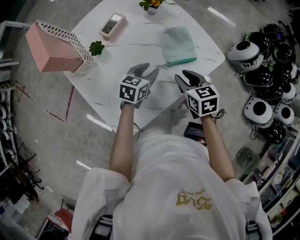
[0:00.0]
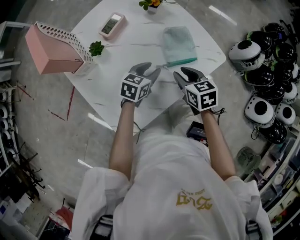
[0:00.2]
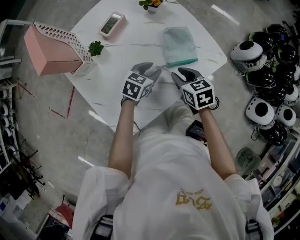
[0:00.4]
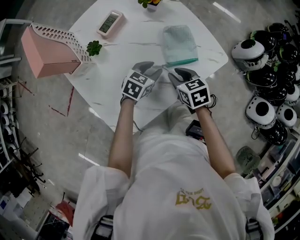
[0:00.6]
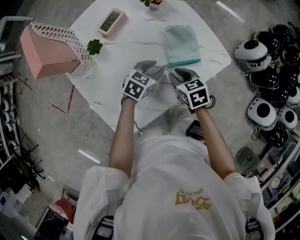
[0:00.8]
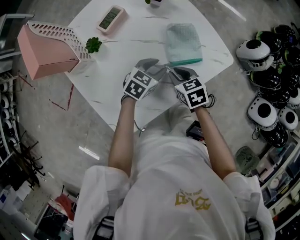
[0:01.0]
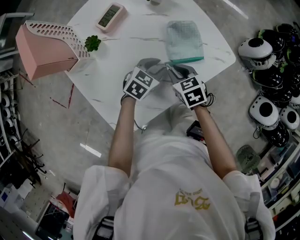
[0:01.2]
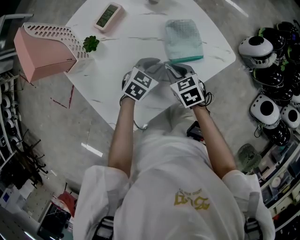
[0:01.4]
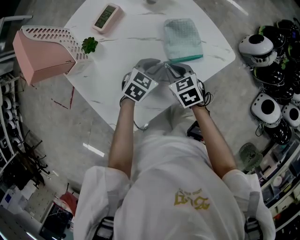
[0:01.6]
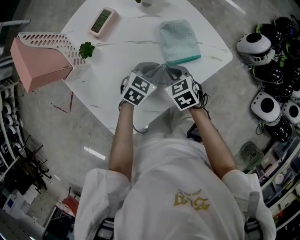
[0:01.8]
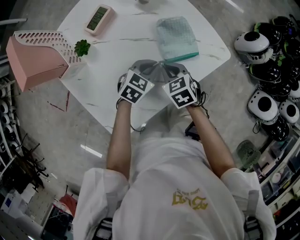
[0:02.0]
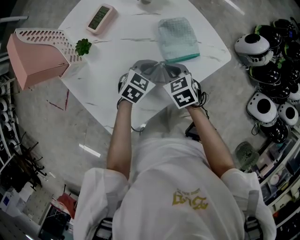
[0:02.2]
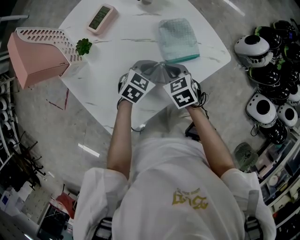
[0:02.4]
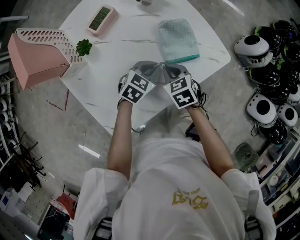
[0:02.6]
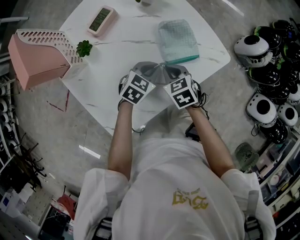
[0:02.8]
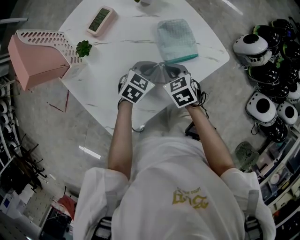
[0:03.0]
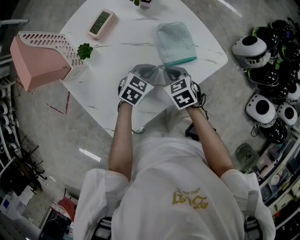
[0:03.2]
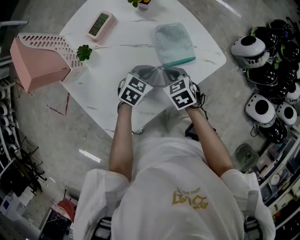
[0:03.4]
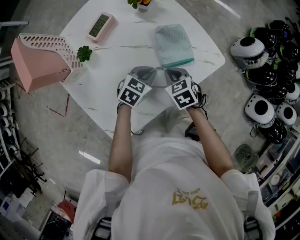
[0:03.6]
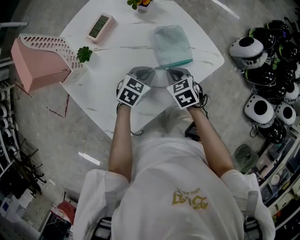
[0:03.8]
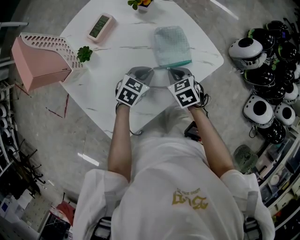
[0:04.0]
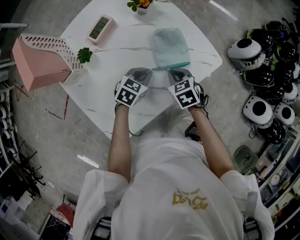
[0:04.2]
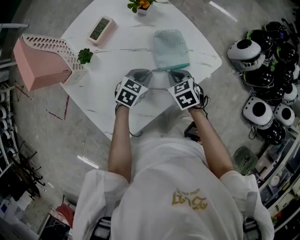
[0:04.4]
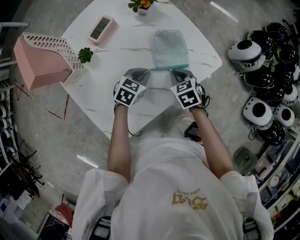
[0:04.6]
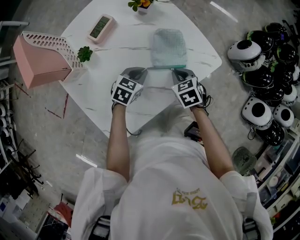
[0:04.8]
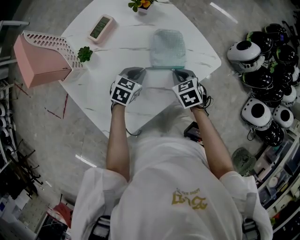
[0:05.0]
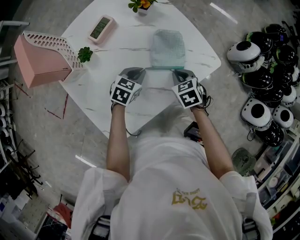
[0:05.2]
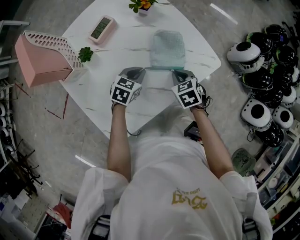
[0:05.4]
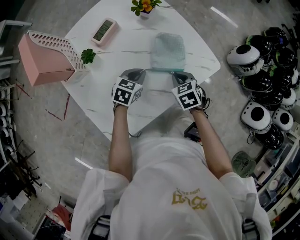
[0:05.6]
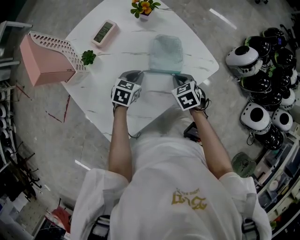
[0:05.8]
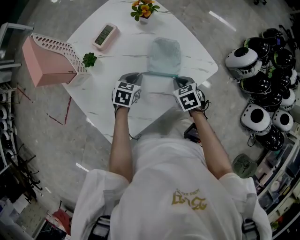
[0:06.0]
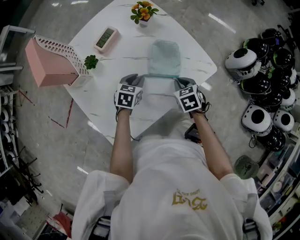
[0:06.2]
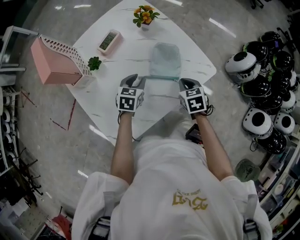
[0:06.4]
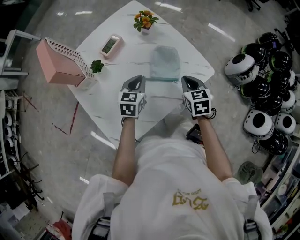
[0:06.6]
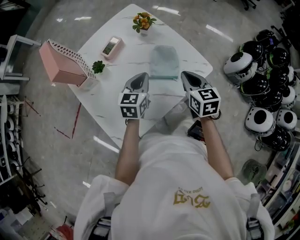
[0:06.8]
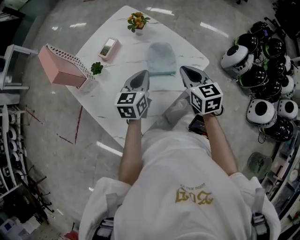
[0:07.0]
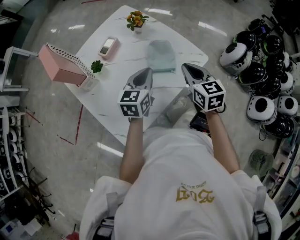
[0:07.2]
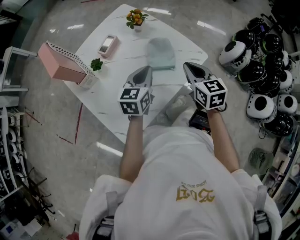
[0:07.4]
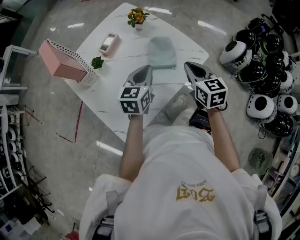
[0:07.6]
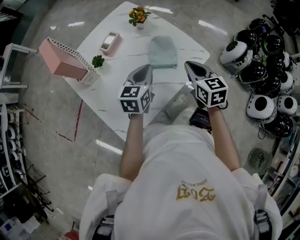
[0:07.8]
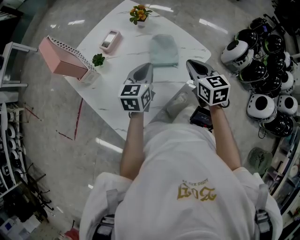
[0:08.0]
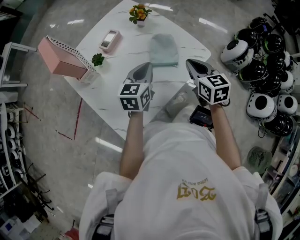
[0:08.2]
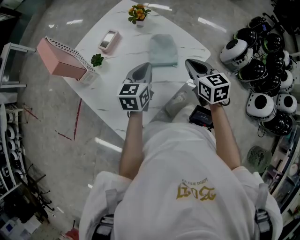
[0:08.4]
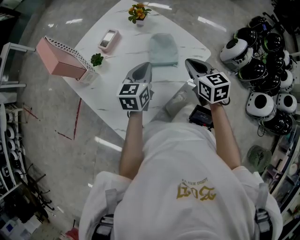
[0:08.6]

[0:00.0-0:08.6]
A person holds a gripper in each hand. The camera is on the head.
0:00.0 to 0:01.4: The left gripper ends up roughly 5 cm from where it was, and changes its angle by about 20 degrees, while the right gripper travels downward by approximately 10 cm.
0:01.4 to 0:04.4: The grippers move only a little.
0:04.4 to 0:05.8: There are only small adjustments of the grippers.
0:05.8 to 0:07.2: Both grippers move upward, approximately 20 cm. The right gripper tips its fingers upward by roughly 30 degrees. The left gripper changes its angle by some 30 degrees, and opens and closes again.
0:07.2 to 0:08.6: The grippers stay close to where they were, moving slightly.

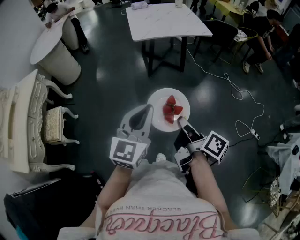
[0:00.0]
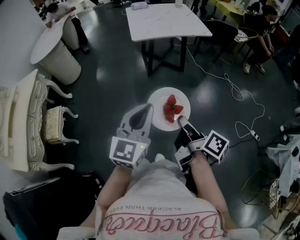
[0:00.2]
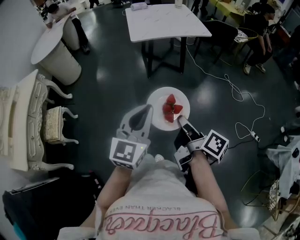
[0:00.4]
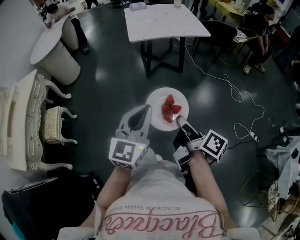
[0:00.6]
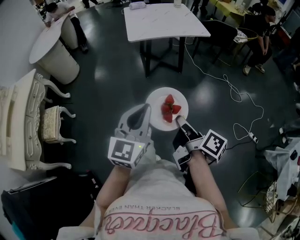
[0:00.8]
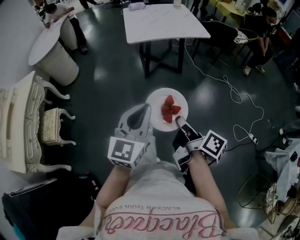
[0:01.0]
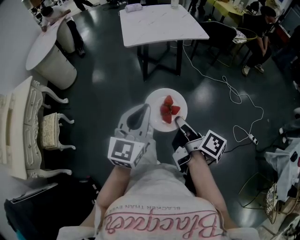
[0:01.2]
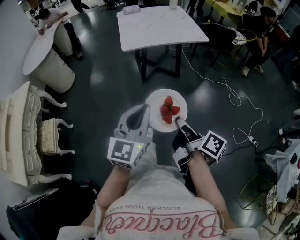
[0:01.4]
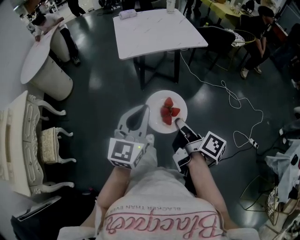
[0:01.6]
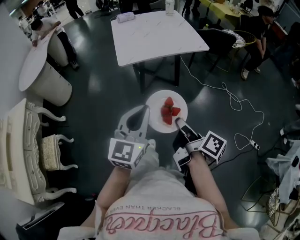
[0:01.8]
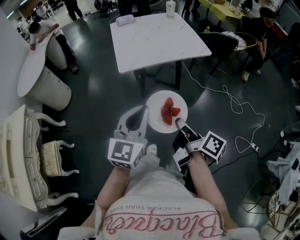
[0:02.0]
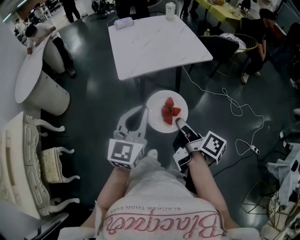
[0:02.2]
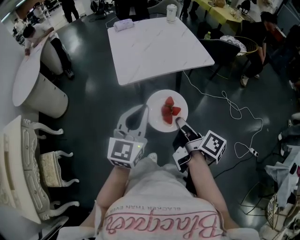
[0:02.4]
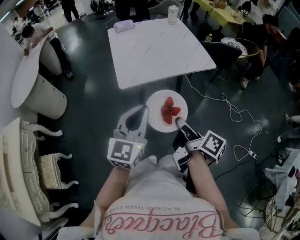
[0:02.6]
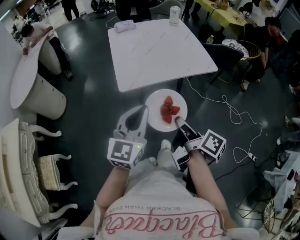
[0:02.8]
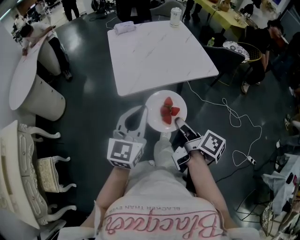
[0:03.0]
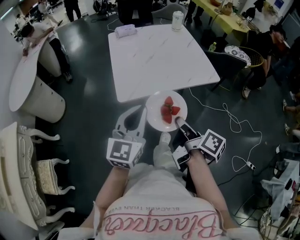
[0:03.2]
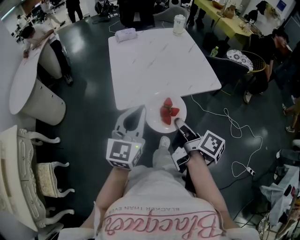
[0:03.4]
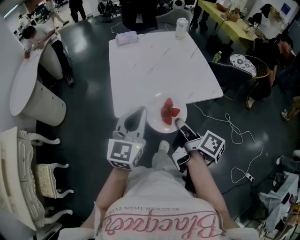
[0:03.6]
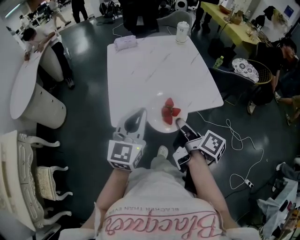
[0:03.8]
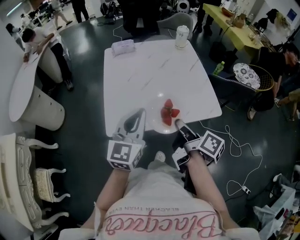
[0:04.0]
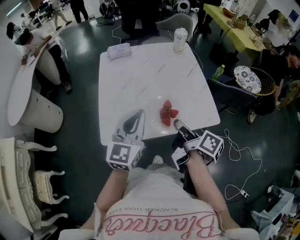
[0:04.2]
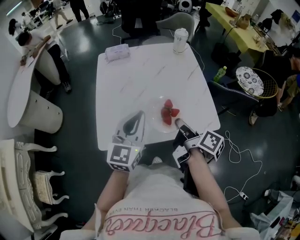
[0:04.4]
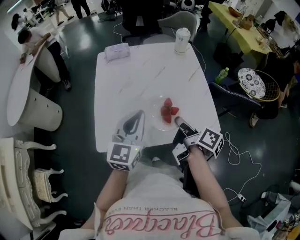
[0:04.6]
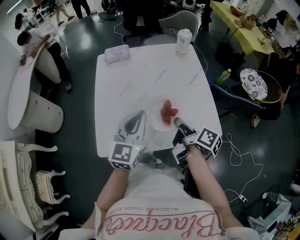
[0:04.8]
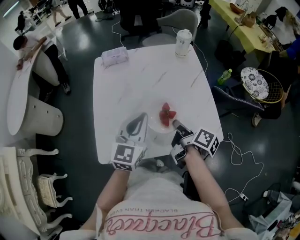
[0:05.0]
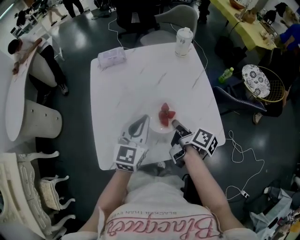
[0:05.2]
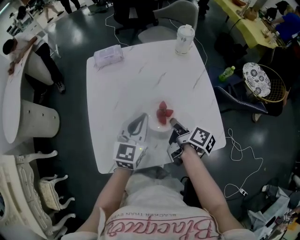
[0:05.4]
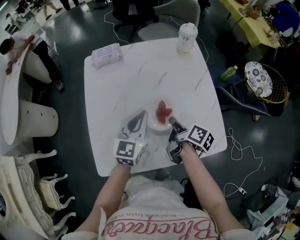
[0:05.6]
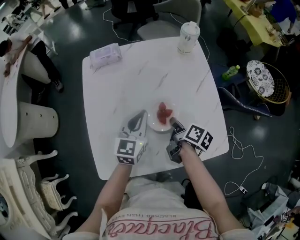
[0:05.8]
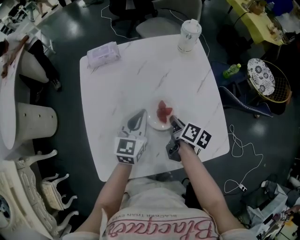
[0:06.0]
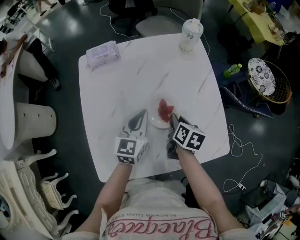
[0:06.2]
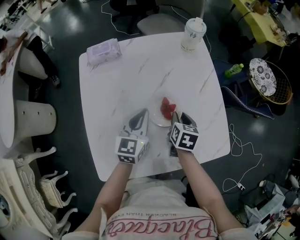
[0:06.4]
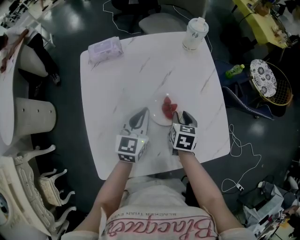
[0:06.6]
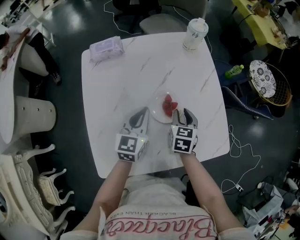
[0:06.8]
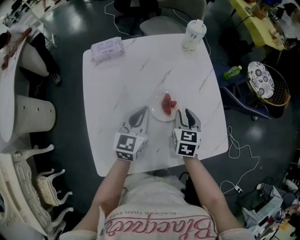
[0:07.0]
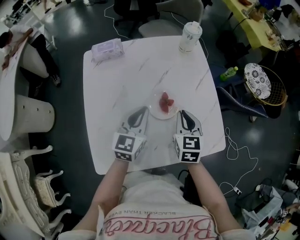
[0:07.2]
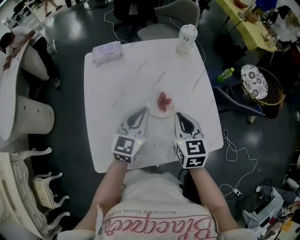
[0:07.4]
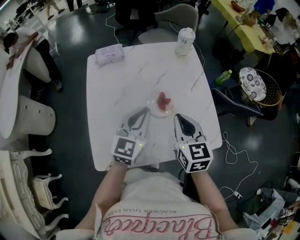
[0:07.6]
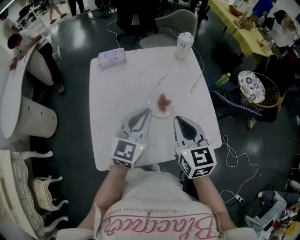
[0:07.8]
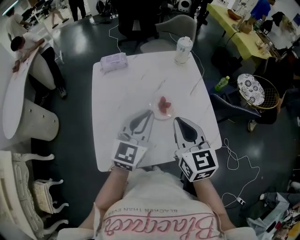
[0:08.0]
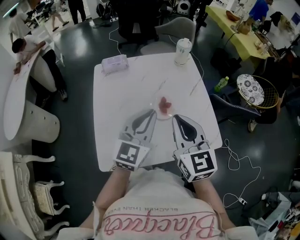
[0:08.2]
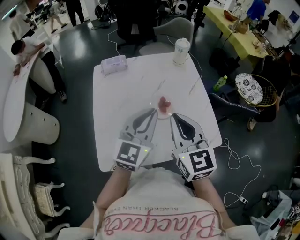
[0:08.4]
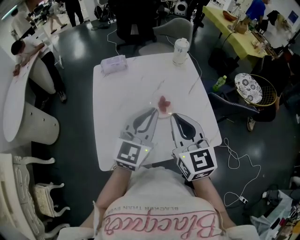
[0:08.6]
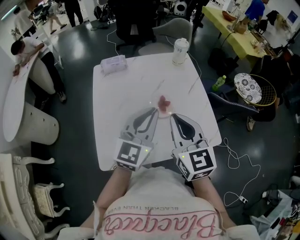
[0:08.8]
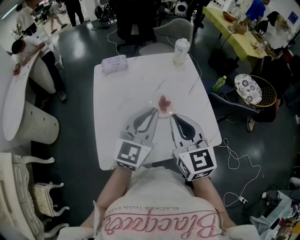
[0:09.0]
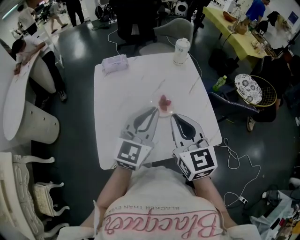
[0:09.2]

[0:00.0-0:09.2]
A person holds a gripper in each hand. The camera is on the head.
0:00.0 to 0:01.6: Both grippers move forward, some 15 cm.
0:01.6 to 0:03.0: Both grippers move forward, approximately 30 cm.
0:03.0 to 0:04.6: Both grippers travel together forward, about 40 cm.
0:04.6 to 0:06.2: The grippers both shift forward and downward by roughly 25 cm. The right gripper turns by some 40 degrees.
0:06.2 to 0:07.6: The right gripper travels upward and backward by about 20 cm, and swivels about 40 degrees; the left gripper shifts roughly 10 cm upward and backward.
0:07.6 to 0:09.2: Both grippers travel together upward and backward, some 10 cm.

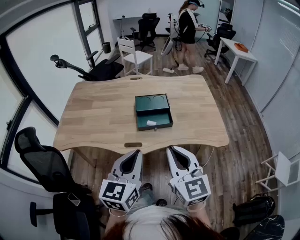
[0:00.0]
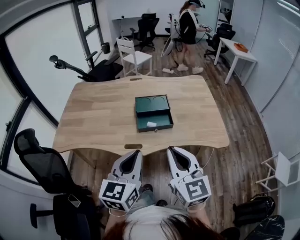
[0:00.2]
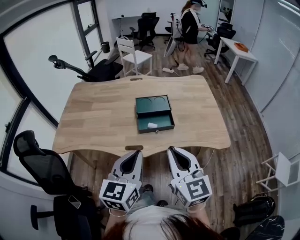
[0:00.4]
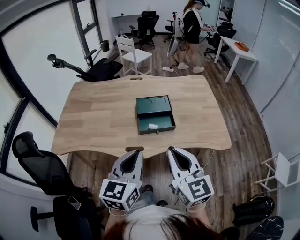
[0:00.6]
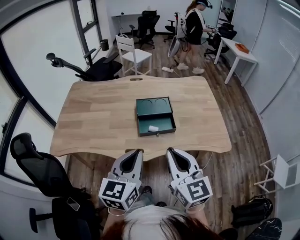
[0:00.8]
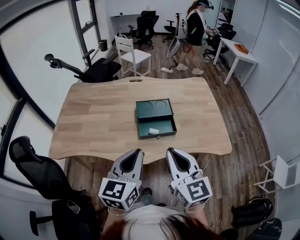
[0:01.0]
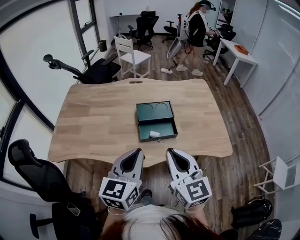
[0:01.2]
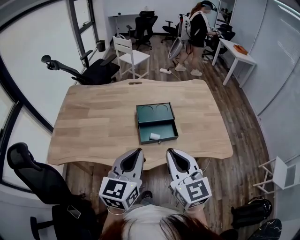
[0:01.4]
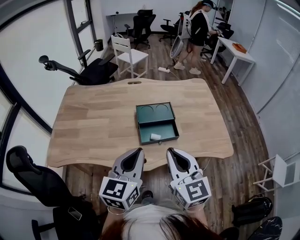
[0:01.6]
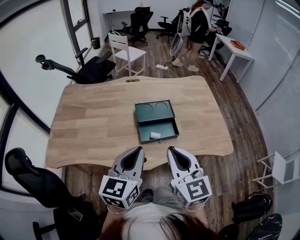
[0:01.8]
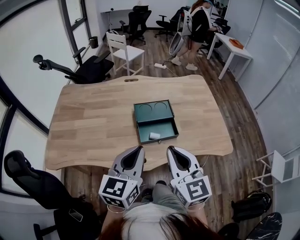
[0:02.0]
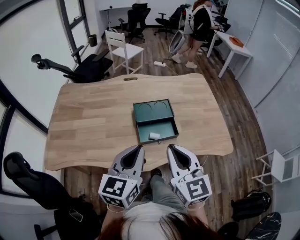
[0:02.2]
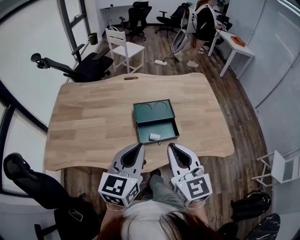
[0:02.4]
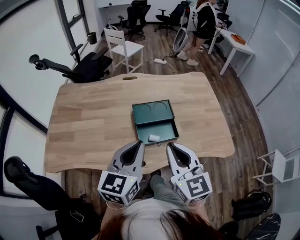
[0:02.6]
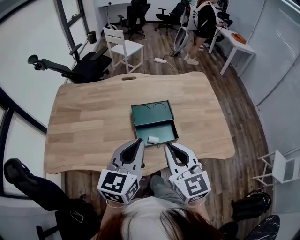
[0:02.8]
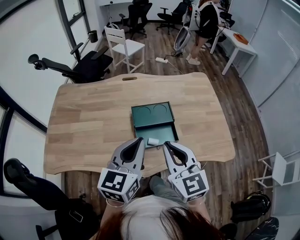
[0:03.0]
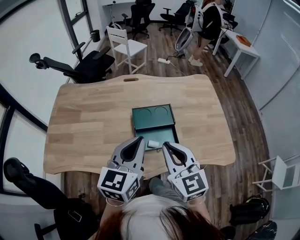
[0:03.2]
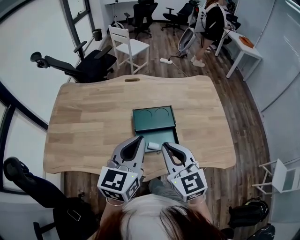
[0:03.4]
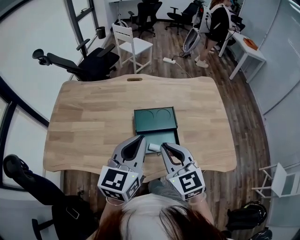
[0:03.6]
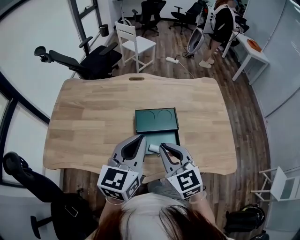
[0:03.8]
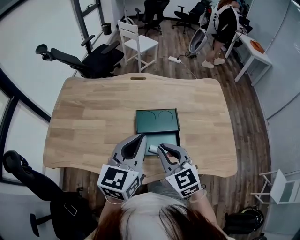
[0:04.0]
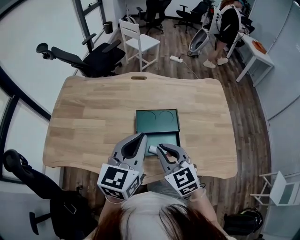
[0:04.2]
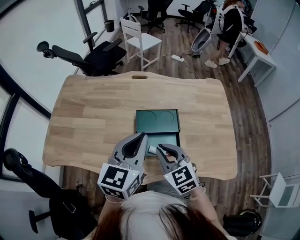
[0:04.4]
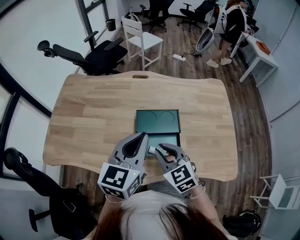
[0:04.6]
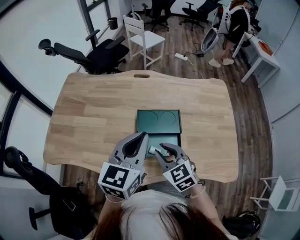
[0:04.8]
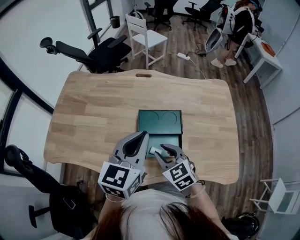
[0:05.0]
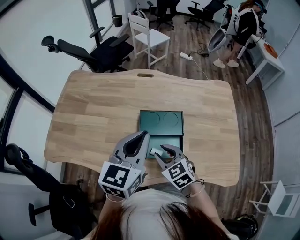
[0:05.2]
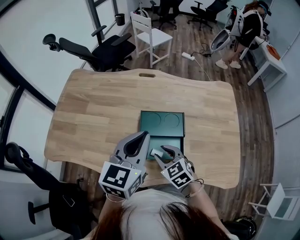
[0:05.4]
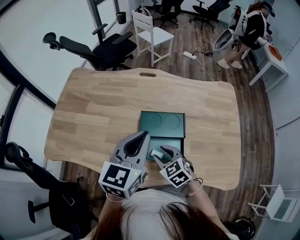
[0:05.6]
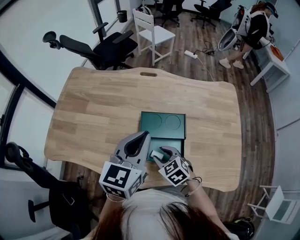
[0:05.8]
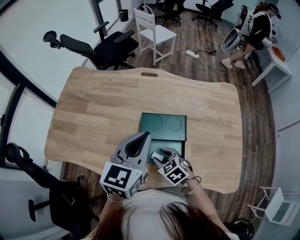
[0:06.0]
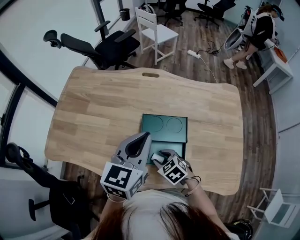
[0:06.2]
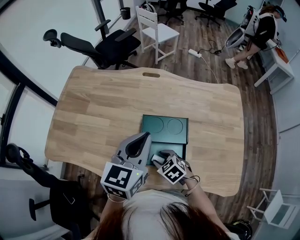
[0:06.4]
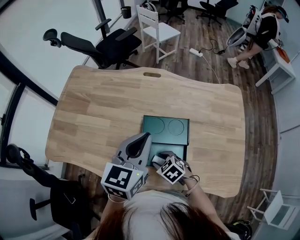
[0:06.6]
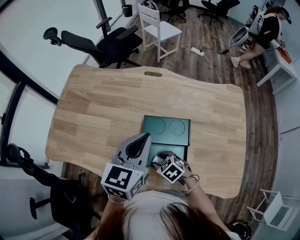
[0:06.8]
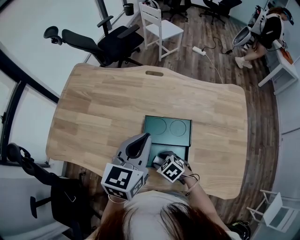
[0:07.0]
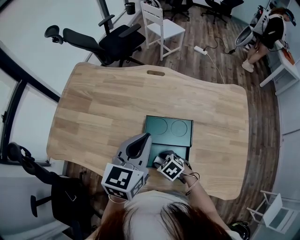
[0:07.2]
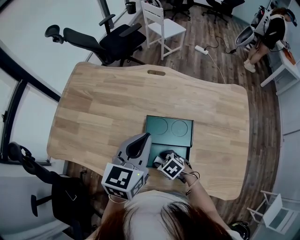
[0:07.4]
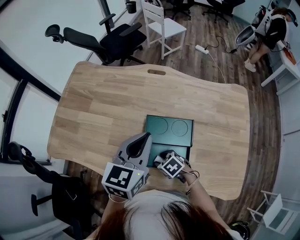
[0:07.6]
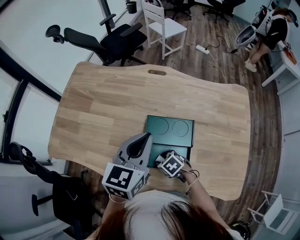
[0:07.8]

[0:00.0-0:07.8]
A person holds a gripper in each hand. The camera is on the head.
0:00.0 to 0:01.6: The right gripper travels forward and to the left by some 15 cm, while the left gripper heads forward, covering about 15 cm.
0:01.6 to 0:03.2: Both grippers move forward, approximately 10 cm.
0:03.2 to 0:04.6: The right gripper heads downward and forward, covering some 15 cm, and rotates approximately 20 degrees. Meanwhile the left gripper moves forward, roughly 5 cm.
0:04.6 to 0:06.2: The right gripper heads downward, covering approximately 15 cm, rotates approximately 30 degrees, and opens its fingers, while the left gripper shifts roughly 5 cm forward.
0:06.2 to 0:07.8: The right gripper moves downward, about 5 cm.
